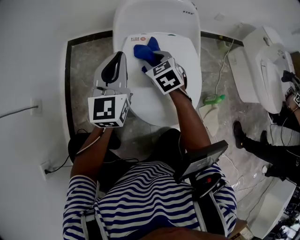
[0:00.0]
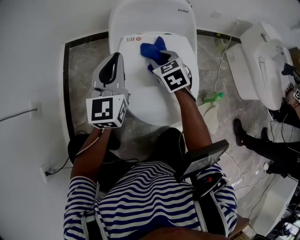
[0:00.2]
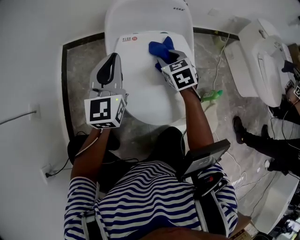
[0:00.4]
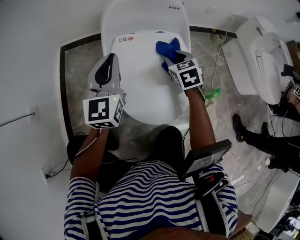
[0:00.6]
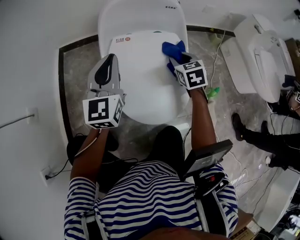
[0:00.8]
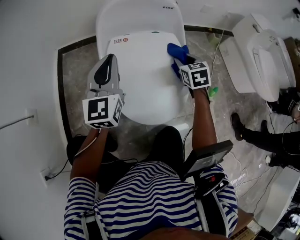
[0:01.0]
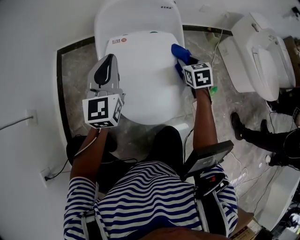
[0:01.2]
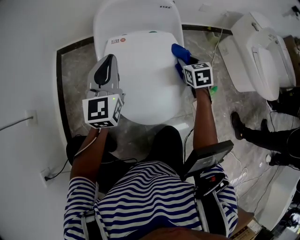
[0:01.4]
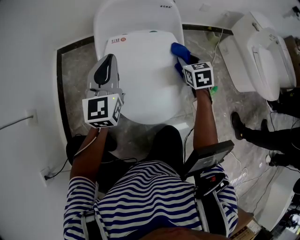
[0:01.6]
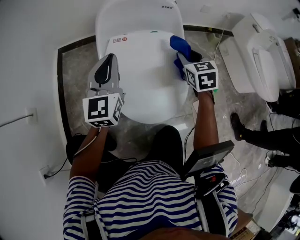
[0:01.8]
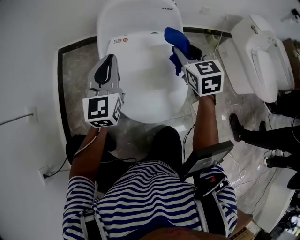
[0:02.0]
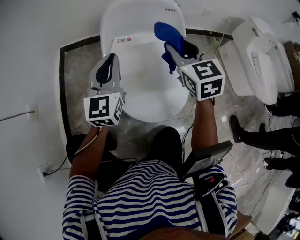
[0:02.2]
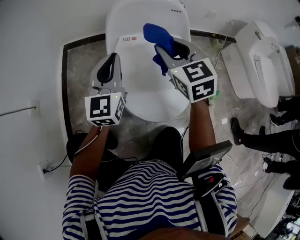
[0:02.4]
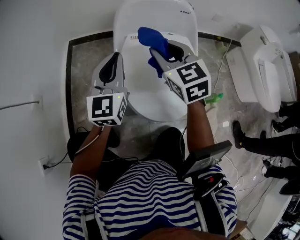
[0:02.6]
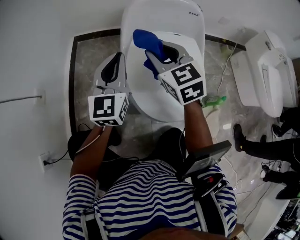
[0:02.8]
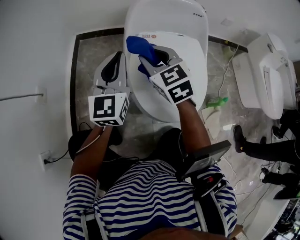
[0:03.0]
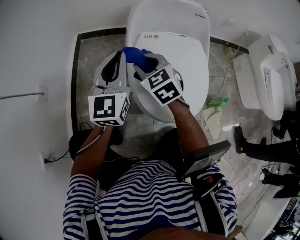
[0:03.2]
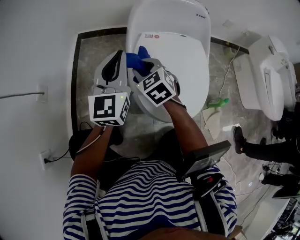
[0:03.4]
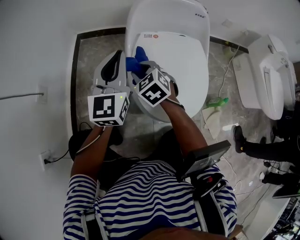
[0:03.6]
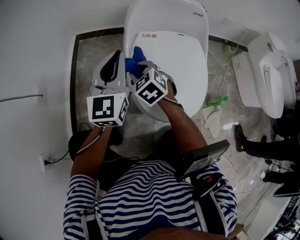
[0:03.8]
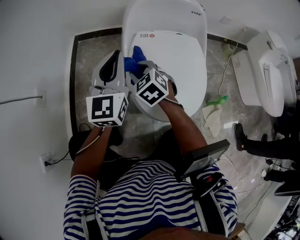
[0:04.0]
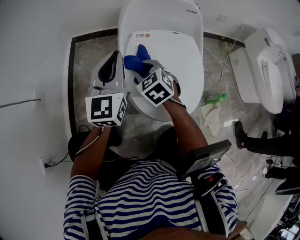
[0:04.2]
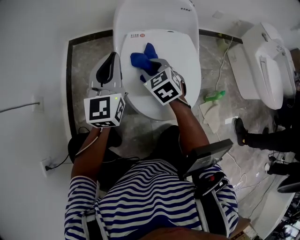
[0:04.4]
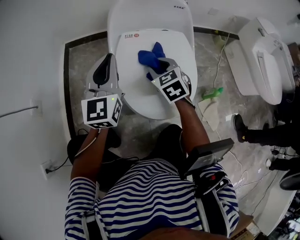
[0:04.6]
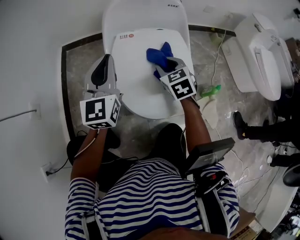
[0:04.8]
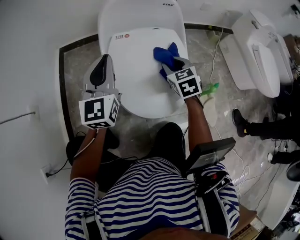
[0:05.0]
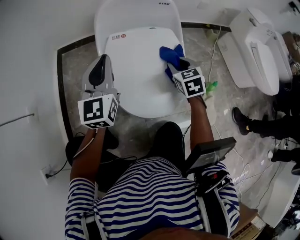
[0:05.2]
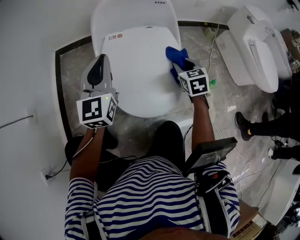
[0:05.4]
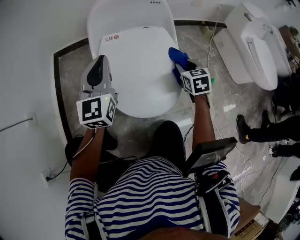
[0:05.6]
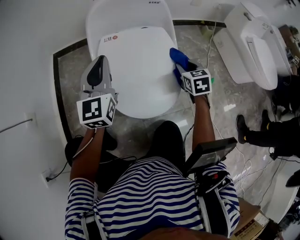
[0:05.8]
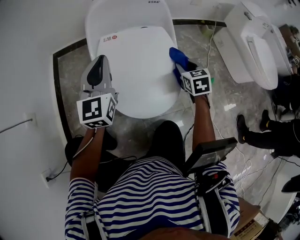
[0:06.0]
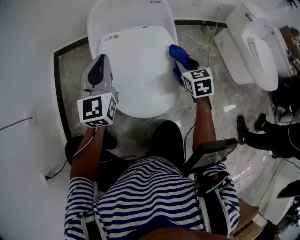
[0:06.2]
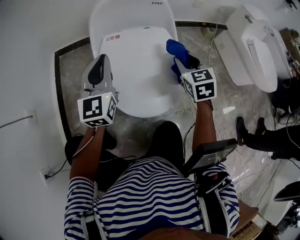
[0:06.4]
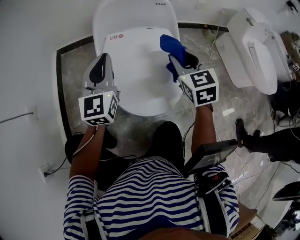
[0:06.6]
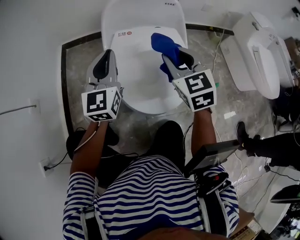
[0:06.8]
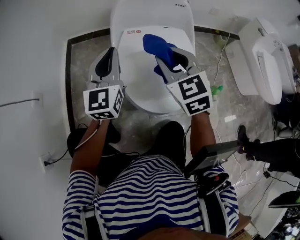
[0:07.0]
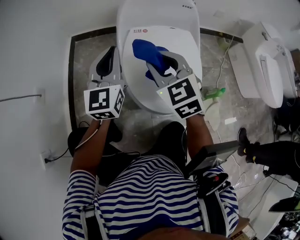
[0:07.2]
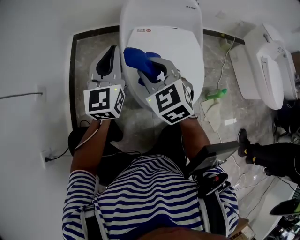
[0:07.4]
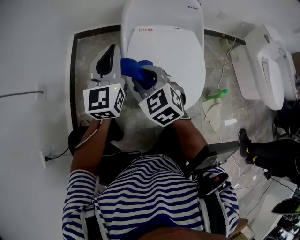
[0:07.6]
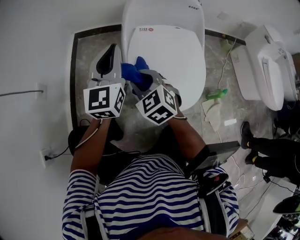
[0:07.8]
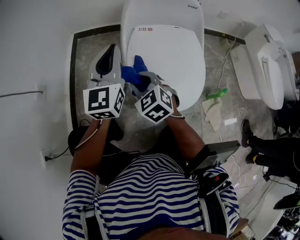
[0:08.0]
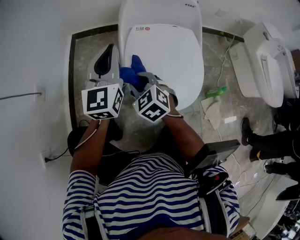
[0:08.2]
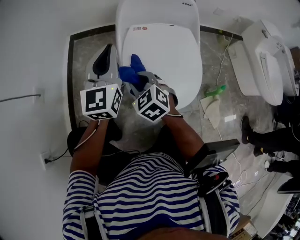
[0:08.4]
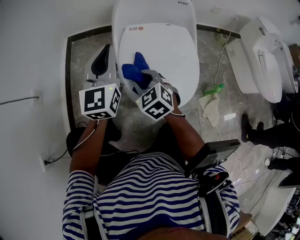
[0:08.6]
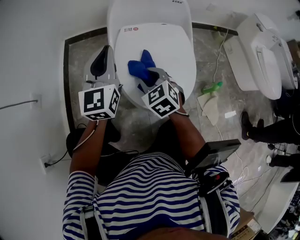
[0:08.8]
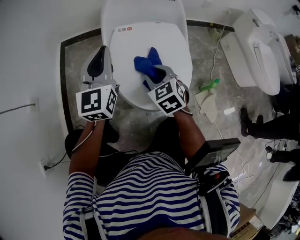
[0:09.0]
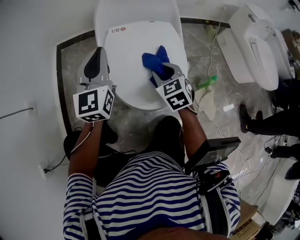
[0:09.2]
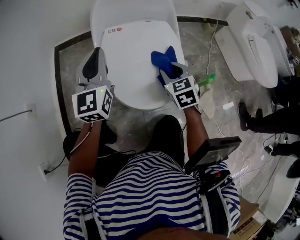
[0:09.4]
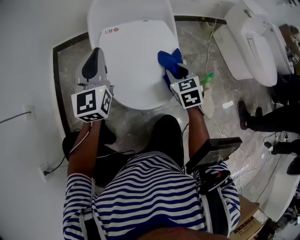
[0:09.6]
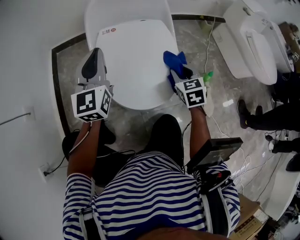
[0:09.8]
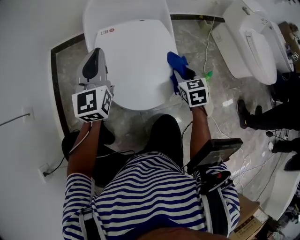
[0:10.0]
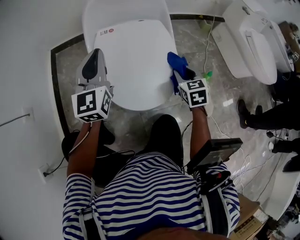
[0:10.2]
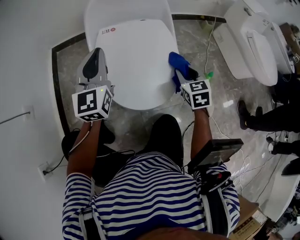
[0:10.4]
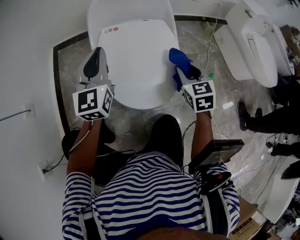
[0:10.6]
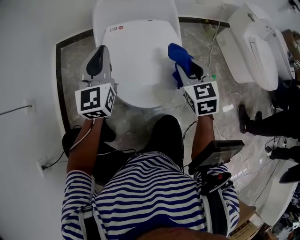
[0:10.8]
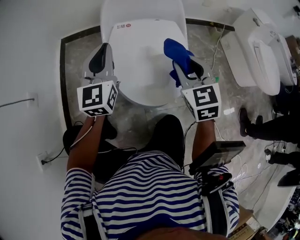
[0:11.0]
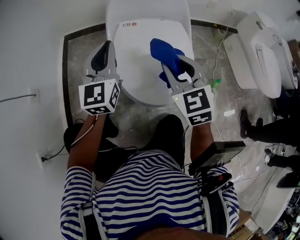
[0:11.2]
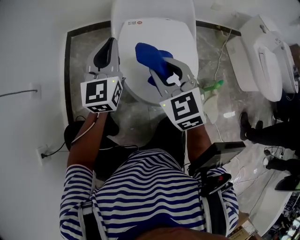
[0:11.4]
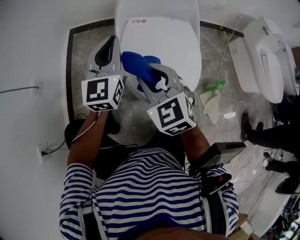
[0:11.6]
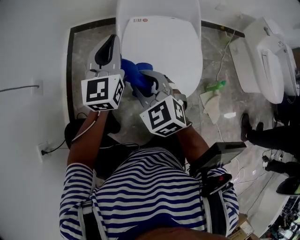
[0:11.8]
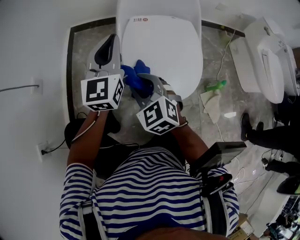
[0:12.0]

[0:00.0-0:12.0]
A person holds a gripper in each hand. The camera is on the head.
0.0 to 1.6 s: The right gripper goes some 25 cm to the right, and changes its angle by roughly 20 degrees.
1.6 to 3.0 s: The right gripper heads to the left, covering about 30 cm, and turns by some 30 degrees. Meanwhile the left gripper goes roughly 10 cm to the left.
3.0 to 4.4 s: The right gripper goes some 10 cm downward.
4.4 to 6.0 s: The right gripper is displaced to the right by some 25 cm, and turns by approximately 30 degrees. Meanwhile the left gripper moves to the right, approximately 5 cm.
6.0 to 7.6 s: The left gripper goes some 10 cm to the left. Meanwhile the right gripper moves to the left, approximately 35 cm, and rotates roughly 40 degrees.
7.6 to 9.0 s: The right gripper heads to the right and downward, covering about 15 cm.
9.0 to 10.4 s: The right gripper shifts about 20 cm to the right, and turns by some 20 degrees.
10.4 to 12.0 s: The right gripper moves to the left, about 30 cm, and turns by some 40 degrees. Meanwhile the left gripper goes roughly 5 cm to the left.

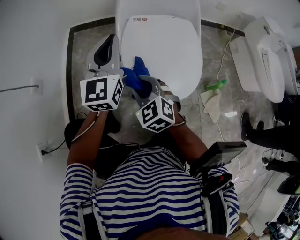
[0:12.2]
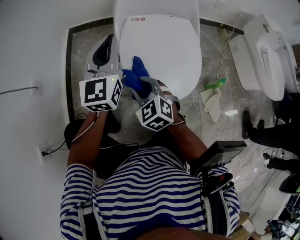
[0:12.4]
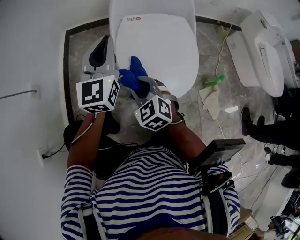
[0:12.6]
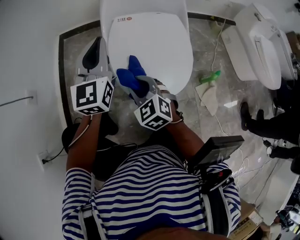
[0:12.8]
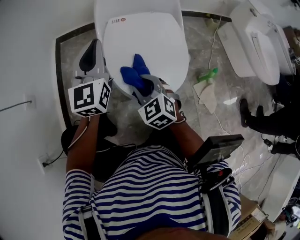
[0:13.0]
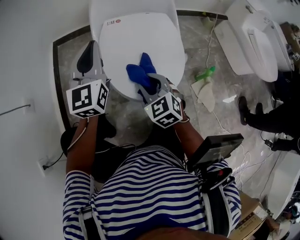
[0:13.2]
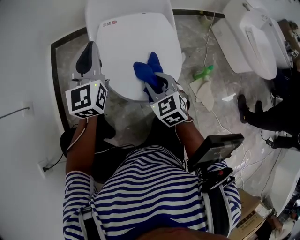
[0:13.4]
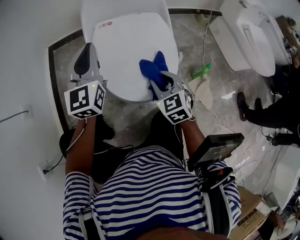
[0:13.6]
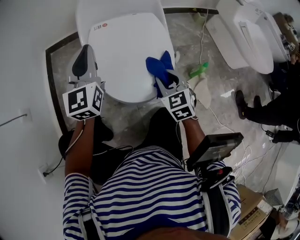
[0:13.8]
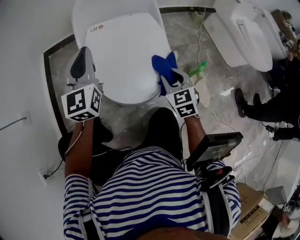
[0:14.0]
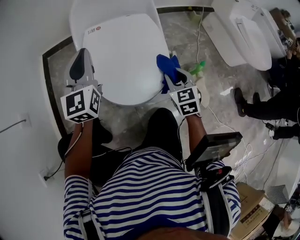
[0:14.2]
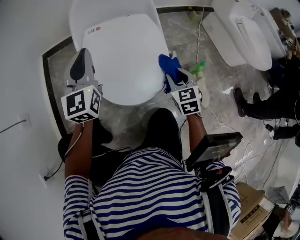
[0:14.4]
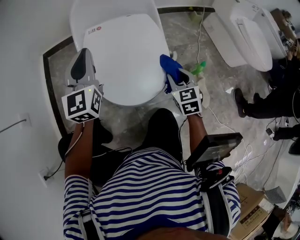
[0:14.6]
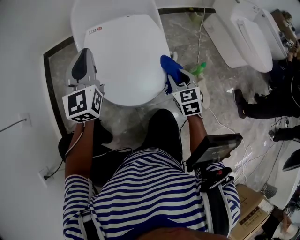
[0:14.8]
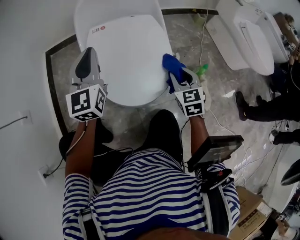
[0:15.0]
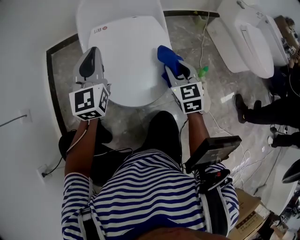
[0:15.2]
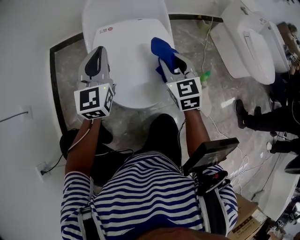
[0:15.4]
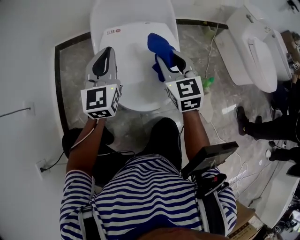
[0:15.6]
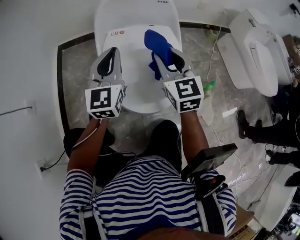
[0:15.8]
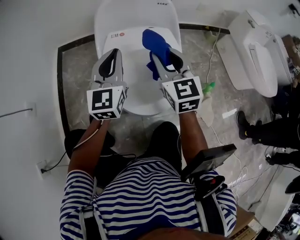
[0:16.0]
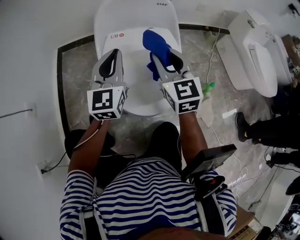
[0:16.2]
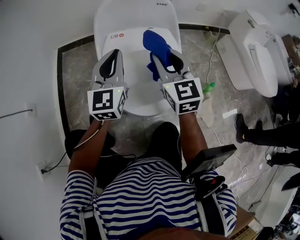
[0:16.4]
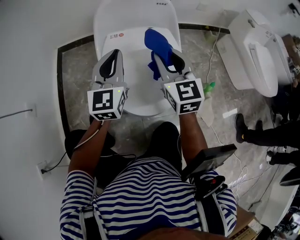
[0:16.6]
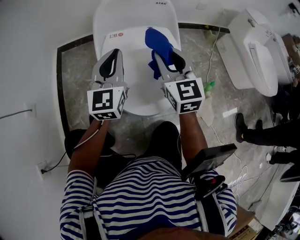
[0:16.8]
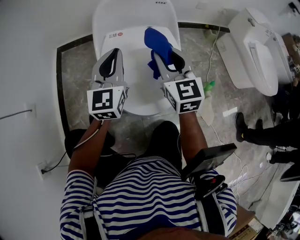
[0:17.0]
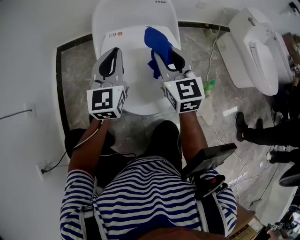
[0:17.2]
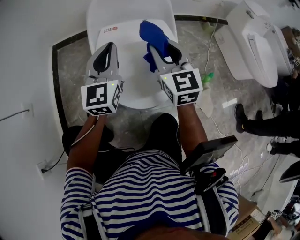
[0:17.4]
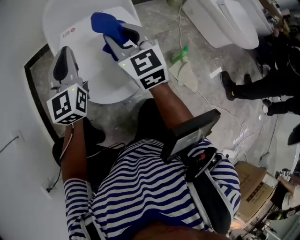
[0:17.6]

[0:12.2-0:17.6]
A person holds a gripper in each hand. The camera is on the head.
12.2 to 13.6 s: The left gripper goes roughly 5 cm to the right. The right gripper moves to the right, roughly 20 cm, and changes its angle by approximately 20 degrees.
13.6 to 15.0 s: The right gripper travels to the right by roughly 10 cm.
15.0 to 16.2 s: The right gripper goes some 20 cm upward, to the left and forward, and rotates roughly 20 degrees.
16.2 to 17.6 s: The grippers move only a little.

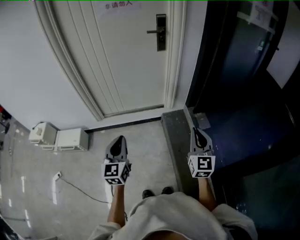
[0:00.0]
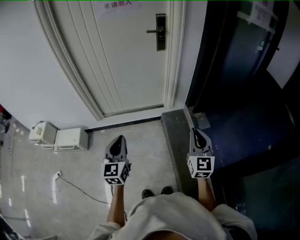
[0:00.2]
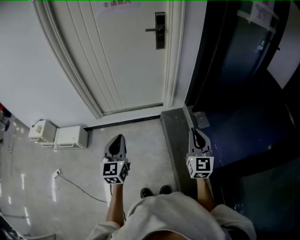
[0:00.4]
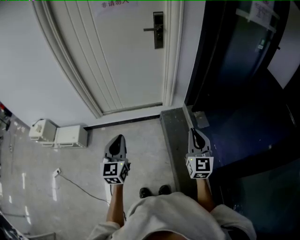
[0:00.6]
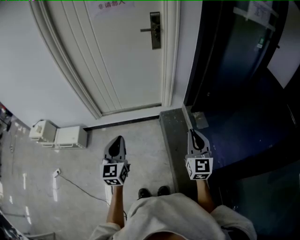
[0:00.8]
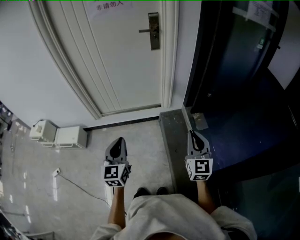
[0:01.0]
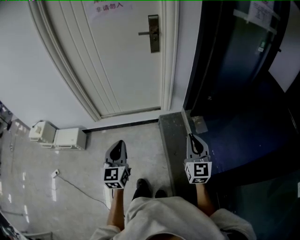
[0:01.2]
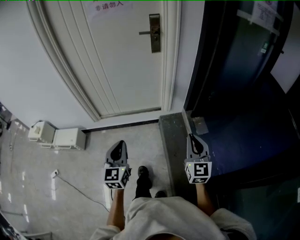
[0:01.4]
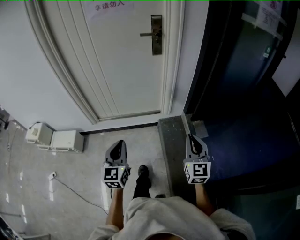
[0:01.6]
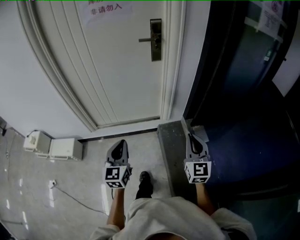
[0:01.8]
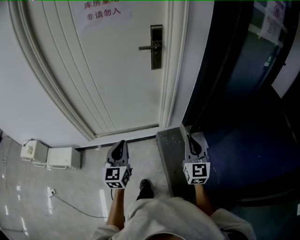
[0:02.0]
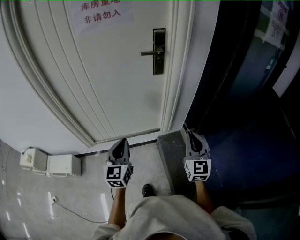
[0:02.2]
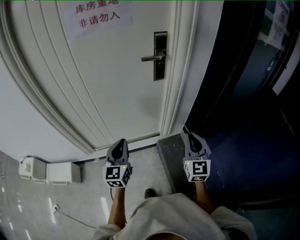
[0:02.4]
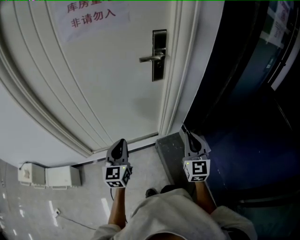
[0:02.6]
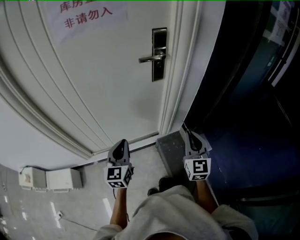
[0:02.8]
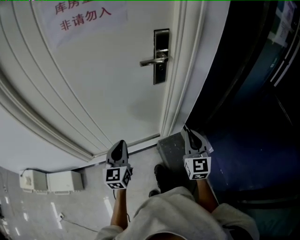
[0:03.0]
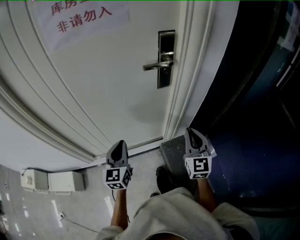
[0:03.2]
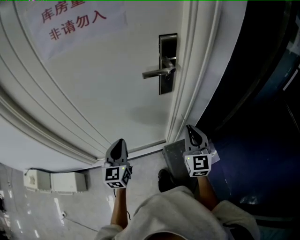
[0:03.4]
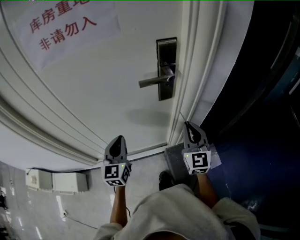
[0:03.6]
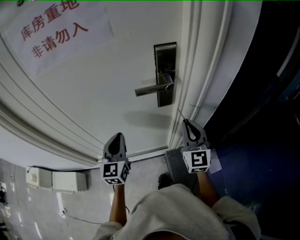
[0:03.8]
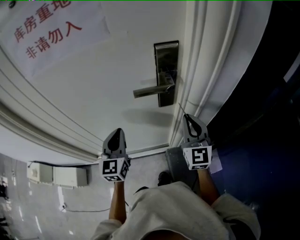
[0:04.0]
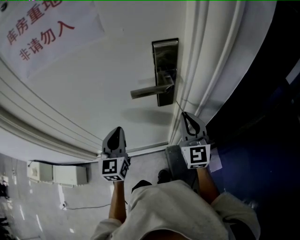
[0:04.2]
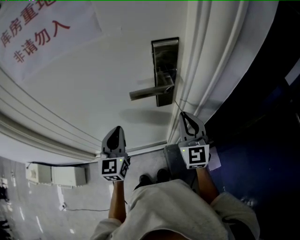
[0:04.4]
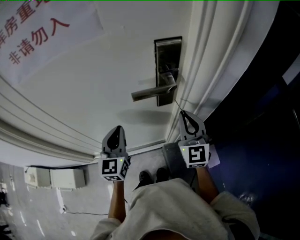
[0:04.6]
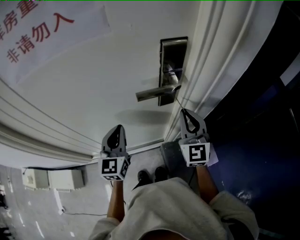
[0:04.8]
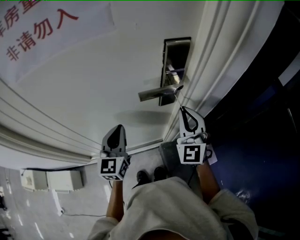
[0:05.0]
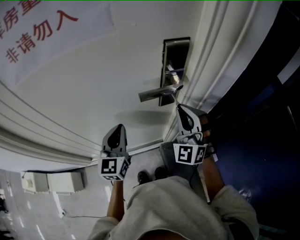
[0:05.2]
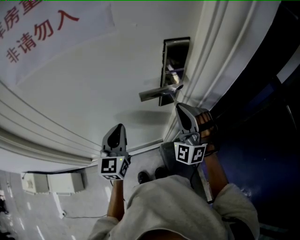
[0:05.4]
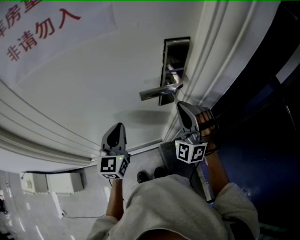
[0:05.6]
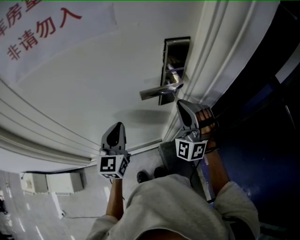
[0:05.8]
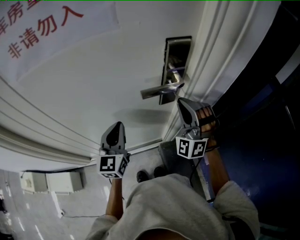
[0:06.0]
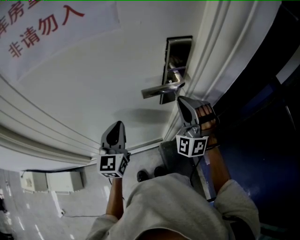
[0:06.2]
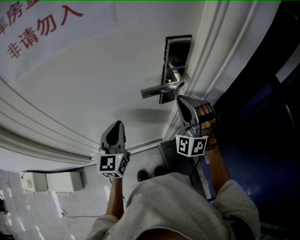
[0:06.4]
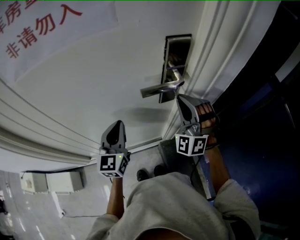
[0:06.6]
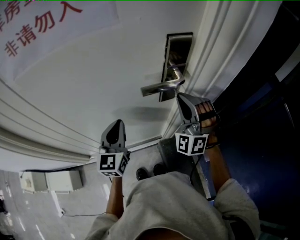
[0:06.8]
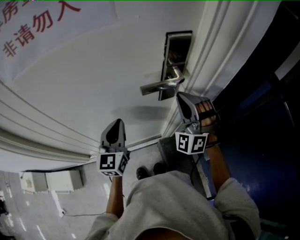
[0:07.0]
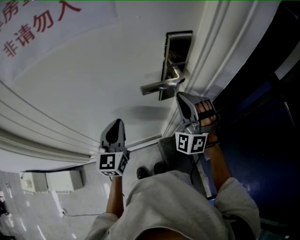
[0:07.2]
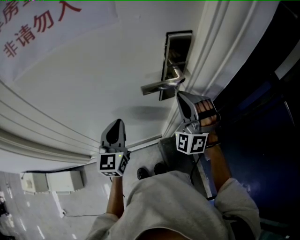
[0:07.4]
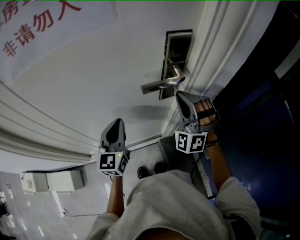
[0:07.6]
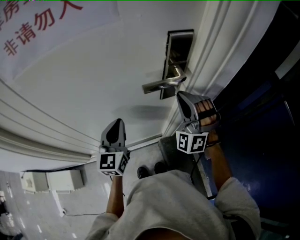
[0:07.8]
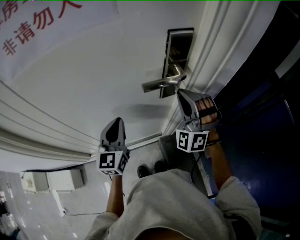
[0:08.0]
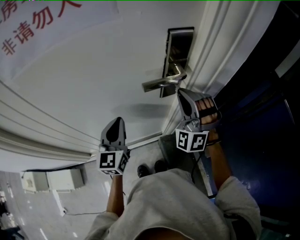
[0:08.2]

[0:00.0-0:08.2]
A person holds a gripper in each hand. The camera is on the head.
0.0 to 1.6 s: The right gripper heads forward and to the right, covering approximately 10 cm. Meanwhile the left gripper is displaced to the right and forward by roughly 10 cm.
1.6 to 3.2 s: The pair of grippers is taken forward, roughly 40 cm.
3.2 to 5.0 s: The two grippers go approximately 20 cm forward. The right gripper turns by approximately 20 degrees.
5.0 to 6.6 s: The right gripper rotates around the line of its fingers by approximately 40 degrees, counterclockwise from behind.
6.6 to 8.2 s: Both grippers stay put.
